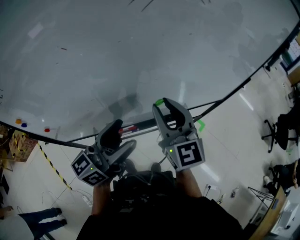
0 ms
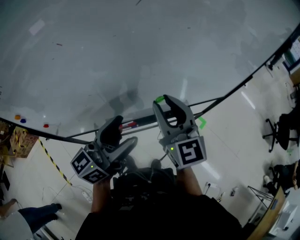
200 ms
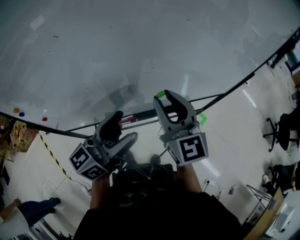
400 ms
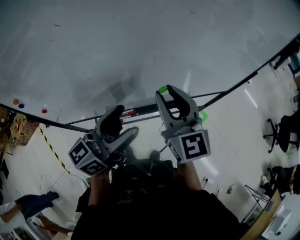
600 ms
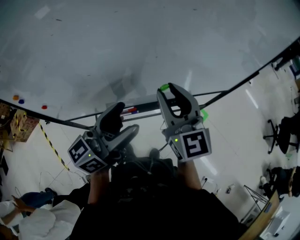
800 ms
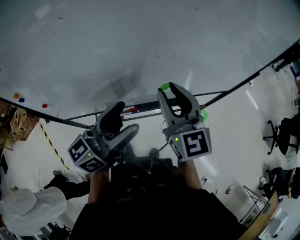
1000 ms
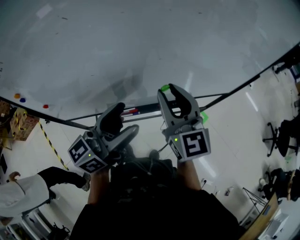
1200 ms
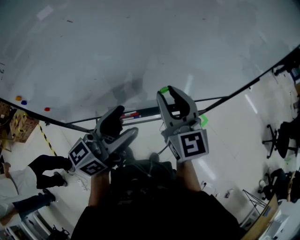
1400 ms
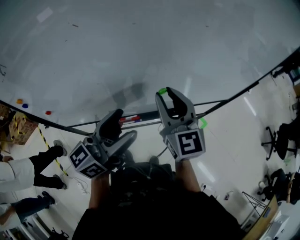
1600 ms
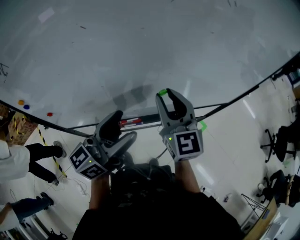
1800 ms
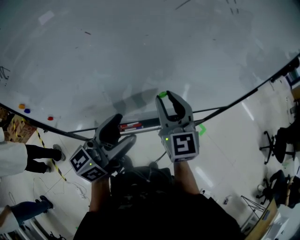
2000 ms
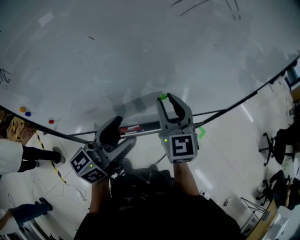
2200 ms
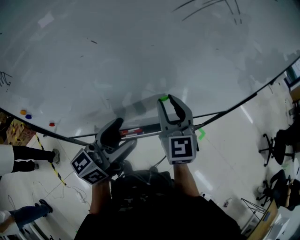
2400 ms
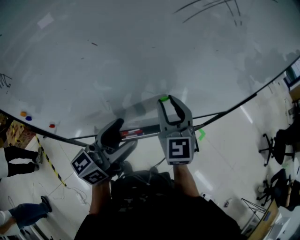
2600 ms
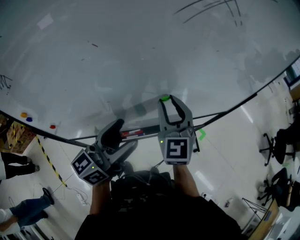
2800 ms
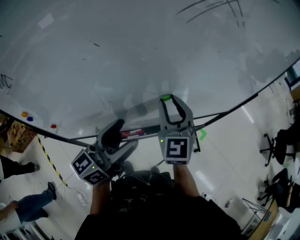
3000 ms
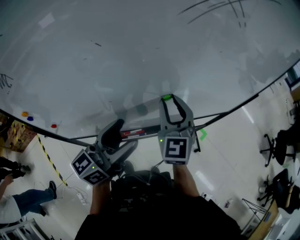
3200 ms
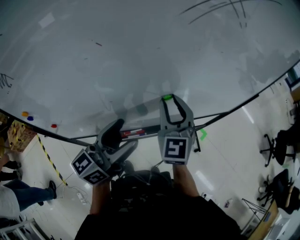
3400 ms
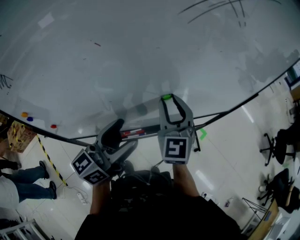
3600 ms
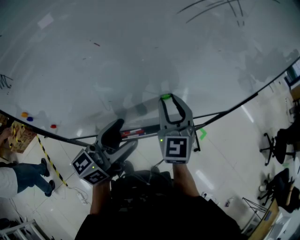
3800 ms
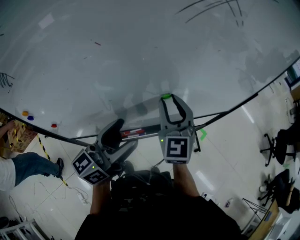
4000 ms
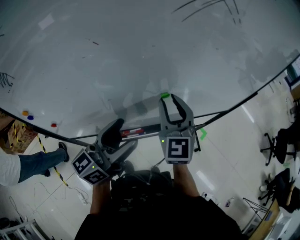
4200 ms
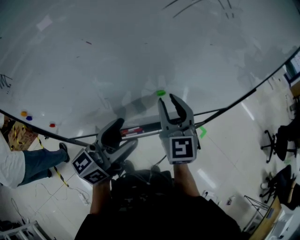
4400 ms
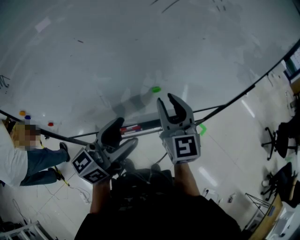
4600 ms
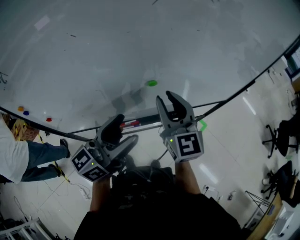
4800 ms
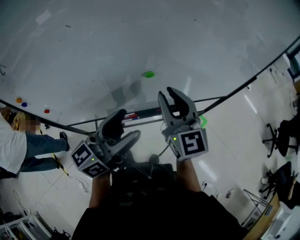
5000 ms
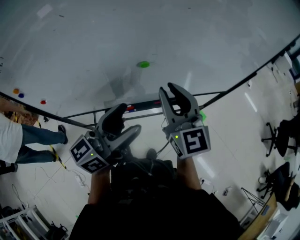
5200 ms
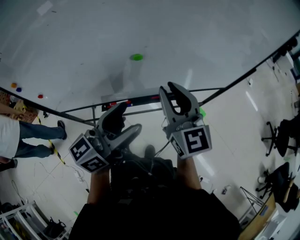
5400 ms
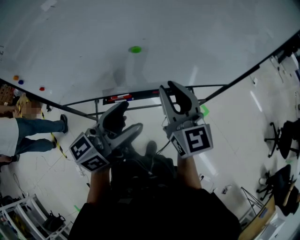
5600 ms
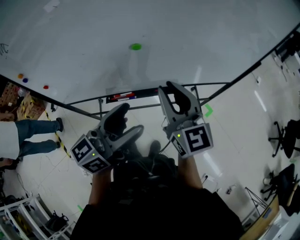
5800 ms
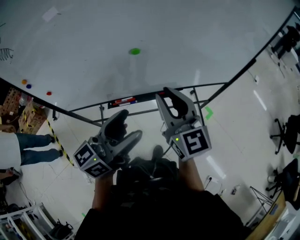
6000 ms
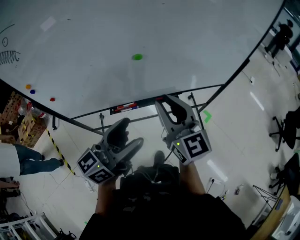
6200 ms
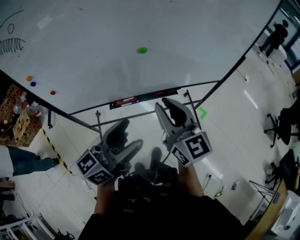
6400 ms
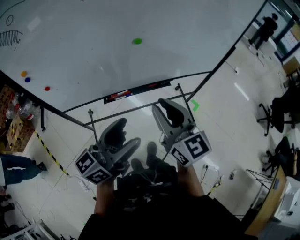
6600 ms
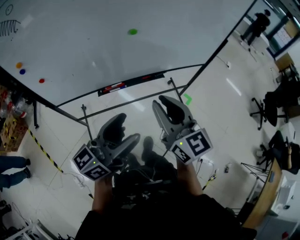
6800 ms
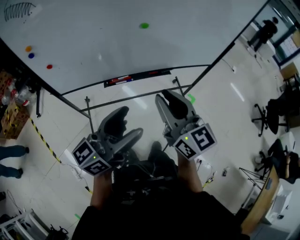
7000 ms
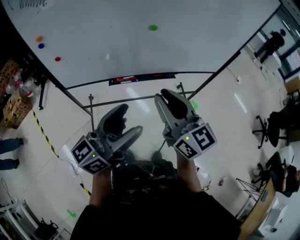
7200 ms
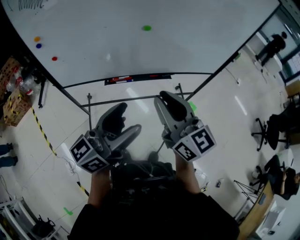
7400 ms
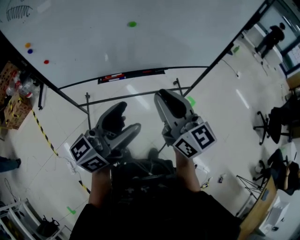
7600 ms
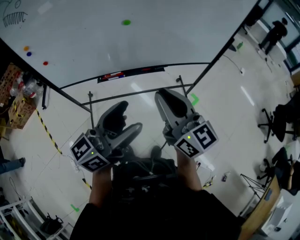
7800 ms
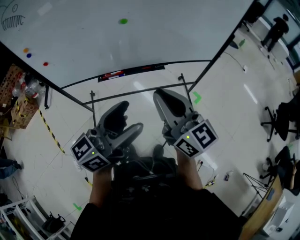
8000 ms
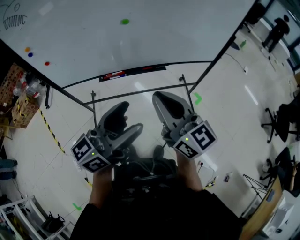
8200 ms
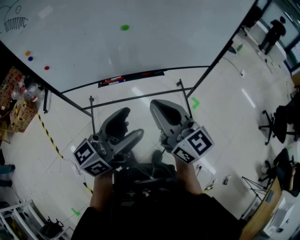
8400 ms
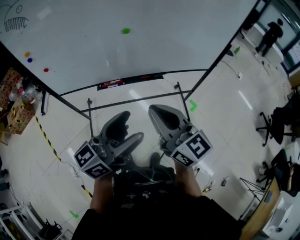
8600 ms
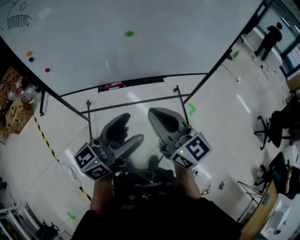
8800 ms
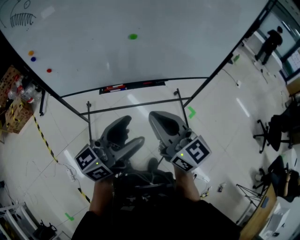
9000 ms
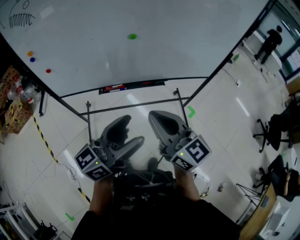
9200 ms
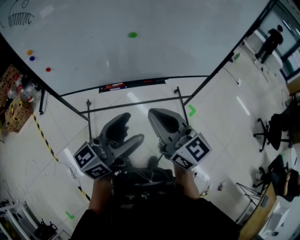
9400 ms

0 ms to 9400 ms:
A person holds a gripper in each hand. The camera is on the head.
0 ms to 1600 ms: There are only small adjustments of the grippers.
1600 ms to 3200 ms: The right gripper swivels roughly 20 degrees.
3200 ms to 4800 ms: The right gripper moves roughly 5 cm.
4800 ms to 6200 ms: Both grippers move backward and to the right, some 15 cm.
6200 ms to 7800 ms: Both grippers move backward and to the right, roughly 15 cm.
7800 ms to 9400 ms: The right gripper heads to the left, covering approximately 5 cm.

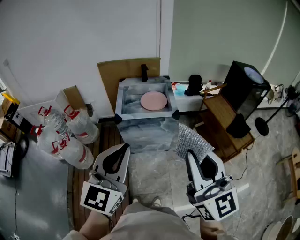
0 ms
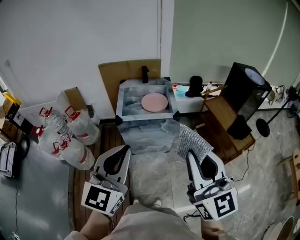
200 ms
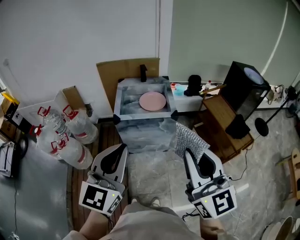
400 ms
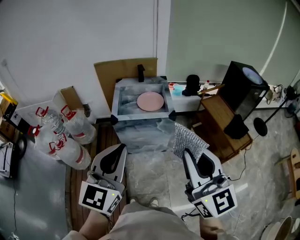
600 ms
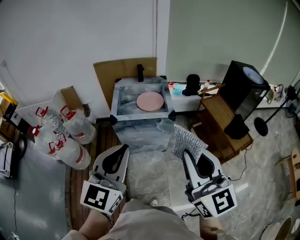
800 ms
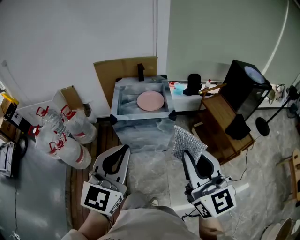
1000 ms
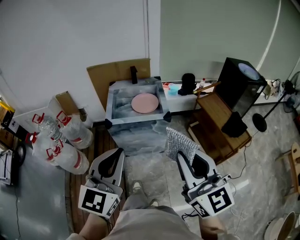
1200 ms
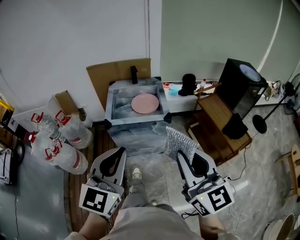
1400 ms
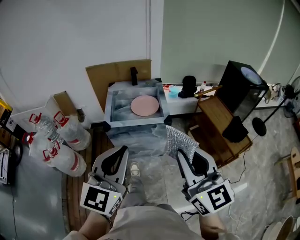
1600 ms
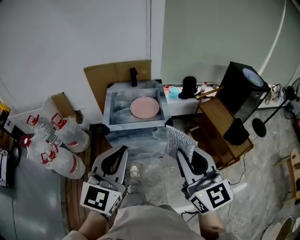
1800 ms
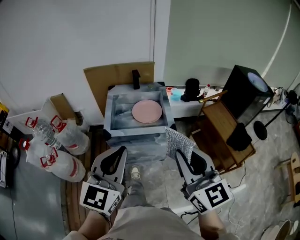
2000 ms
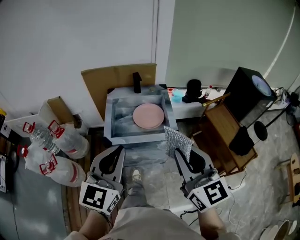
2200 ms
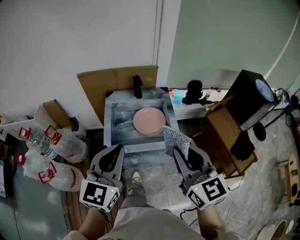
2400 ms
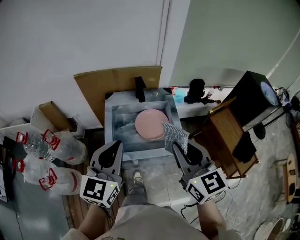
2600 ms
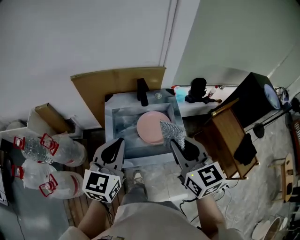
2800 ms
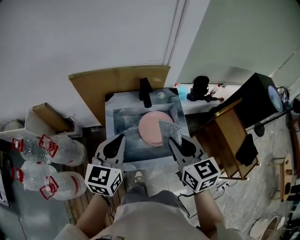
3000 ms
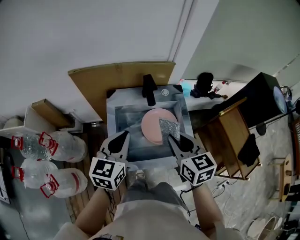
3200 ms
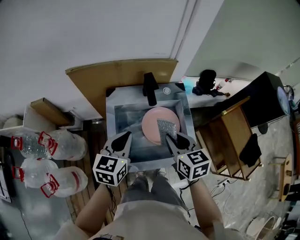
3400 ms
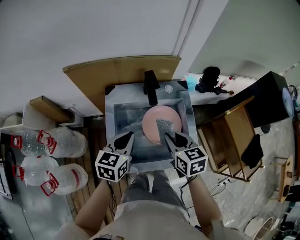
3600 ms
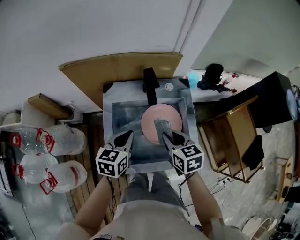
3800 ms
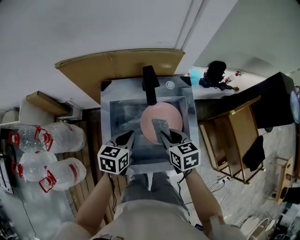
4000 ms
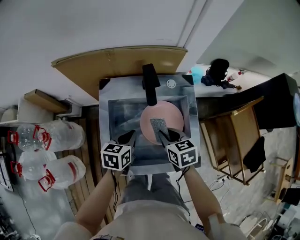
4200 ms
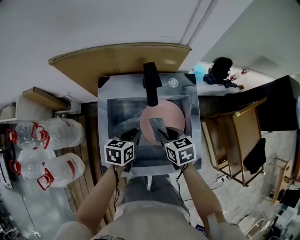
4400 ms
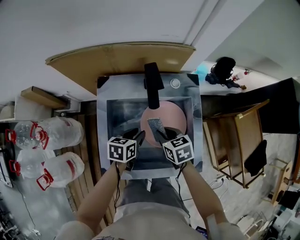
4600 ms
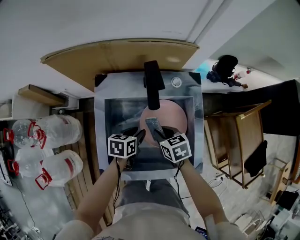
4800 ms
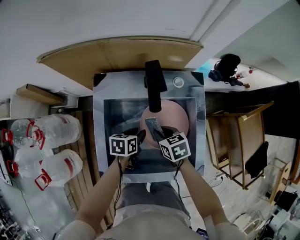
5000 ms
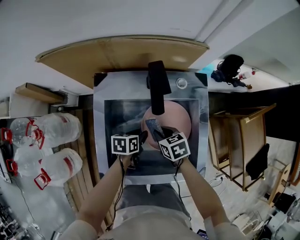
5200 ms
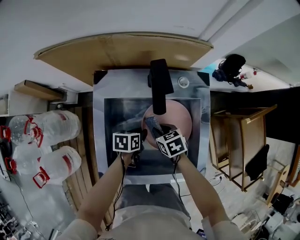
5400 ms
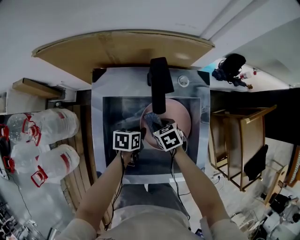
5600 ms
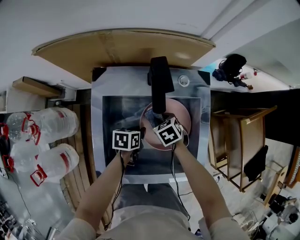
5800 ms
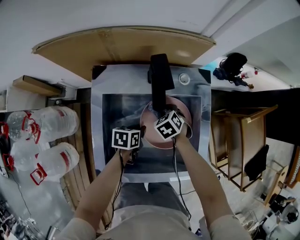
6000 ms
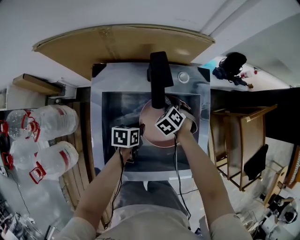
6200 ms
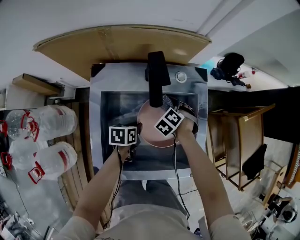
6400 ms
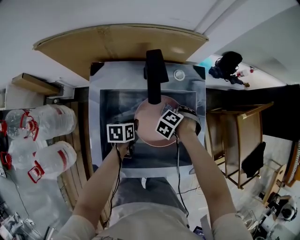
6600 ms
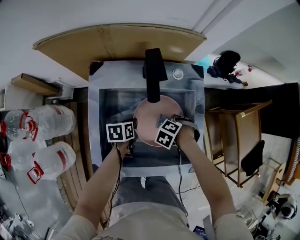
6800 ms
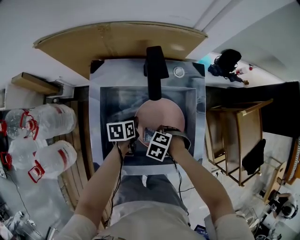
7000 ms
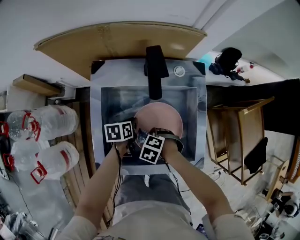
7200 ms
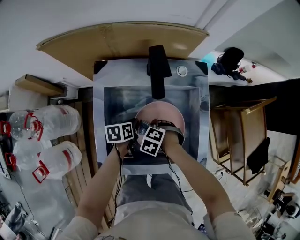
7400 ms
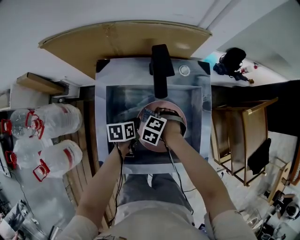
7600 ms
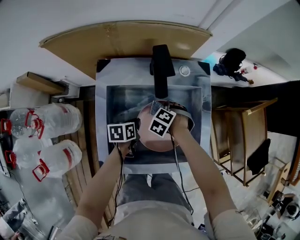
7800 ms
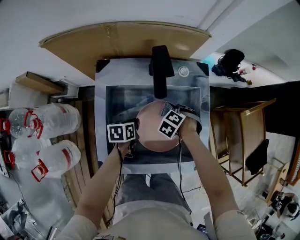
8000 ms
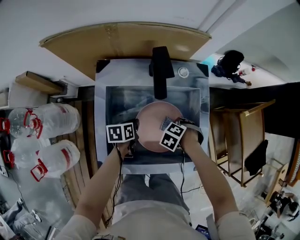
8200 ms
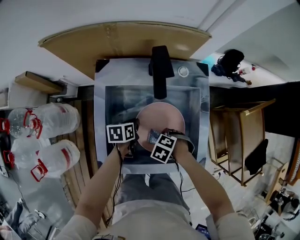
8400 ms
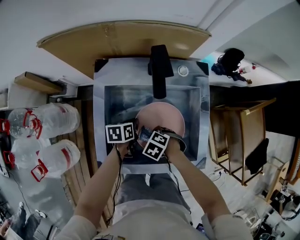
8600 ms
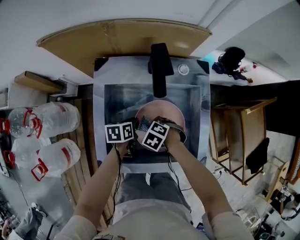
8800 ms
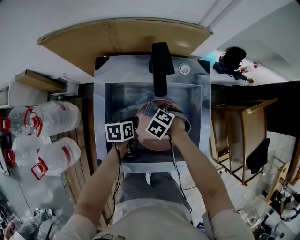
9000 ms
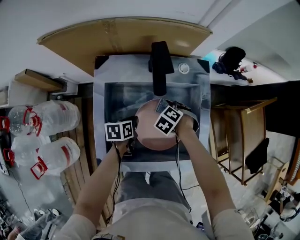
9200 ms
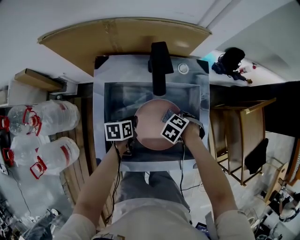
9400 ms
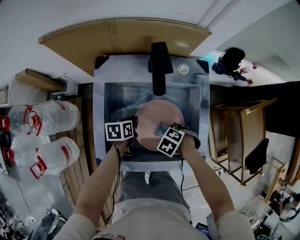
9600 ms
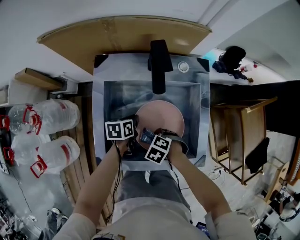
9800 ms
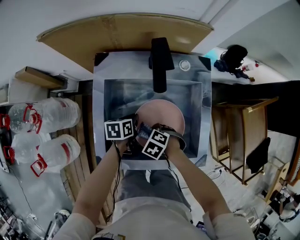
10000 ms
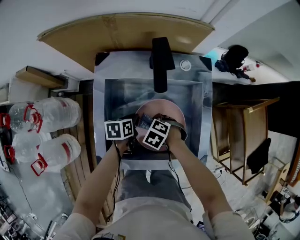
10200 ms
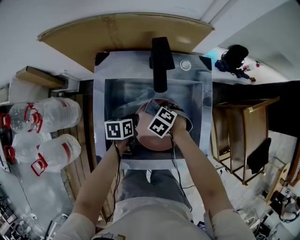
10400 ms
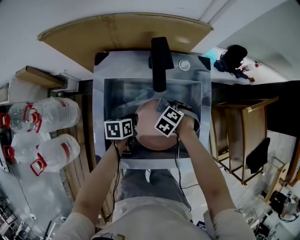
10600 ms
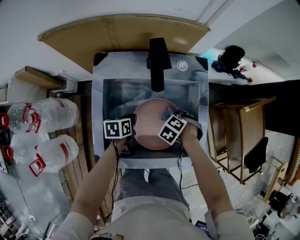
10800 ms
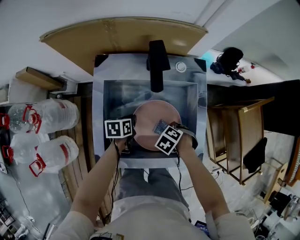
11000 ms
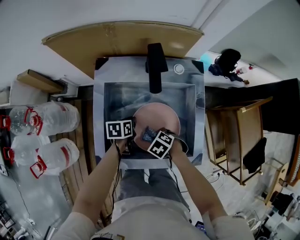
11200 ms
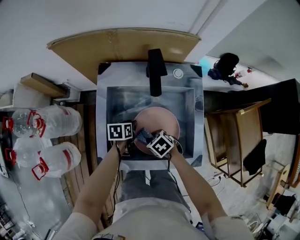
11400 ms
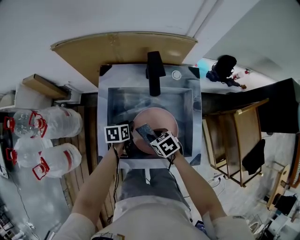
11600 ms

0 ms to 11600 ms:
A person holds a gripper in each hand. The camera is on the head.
0 ms to 1400 ms: The left gripper moves approximately 5 cm, while the right gripper moves forward, some 5 cm.
1400 ms to 2800 ms: Both grippers are carried forward, approximately 50 cm. The right gripper swivels approximately 20 degrees.
2800 ms to 4400 ms: Both grippers travel together downward and forward, approximately 35 cm. The left gripper points its fingers approximately 30 degrees further downward. The right gripper angles its fingers downward, by about 30 degrees.
4400 ms to 5800 ms: The right gripper moves downward and forward, some 15 cm, and turns by approximately 30 degrees. The left gripper goes approximately 15 cm downward, and opens, then closes again.
5800 ms to 7200 ms: The right gripper moves approximately 15 cm, and turns by some 40 degrees.
10200 ms to 11600 ms: The right gripper heads upward, covering some 5 cm, and swivels approximately 40 degrees.

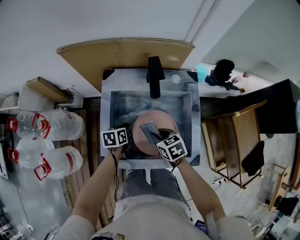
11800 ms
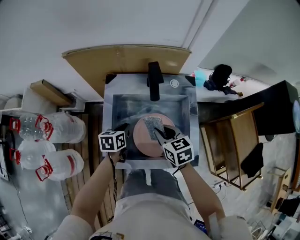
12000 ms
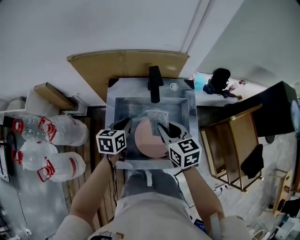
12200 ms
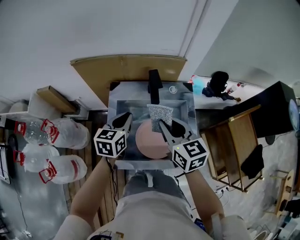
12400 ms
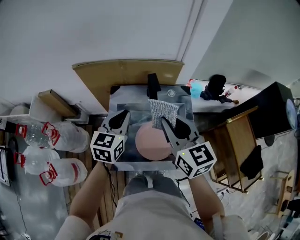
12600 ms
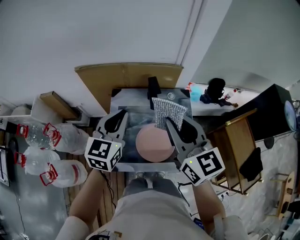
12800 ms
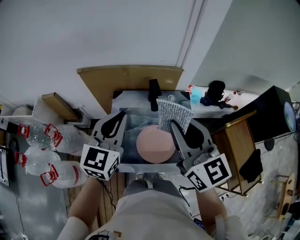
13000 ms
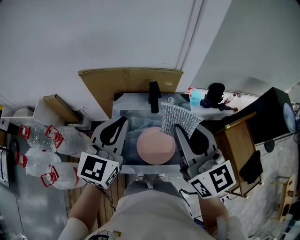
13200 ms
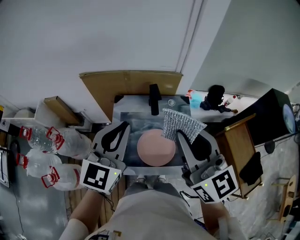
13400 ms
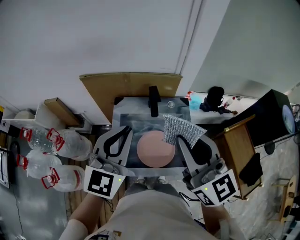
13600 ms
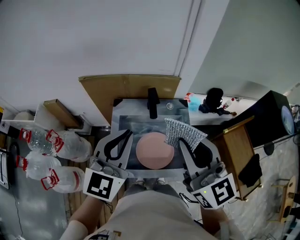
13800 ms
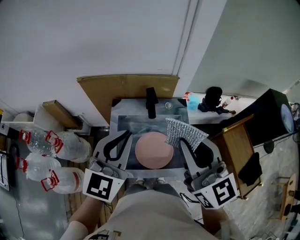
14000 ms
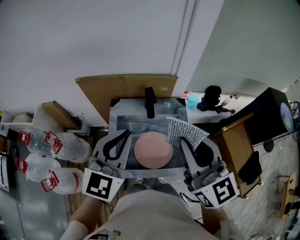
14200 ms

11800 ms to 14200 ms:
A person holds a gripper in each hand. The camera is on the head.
11800 ms to 13000 ms: The two grippers go about 40 cm upward. The left gripper tilts its fingers about 40 degrees upward, while the right gripper tips its fingers upward by approximately 50 degrees.
13000 ms to 14200 ms: The left gripper is displaced backward by roughly 5 cm; the right gripper changes place by roughly 5 cm.
